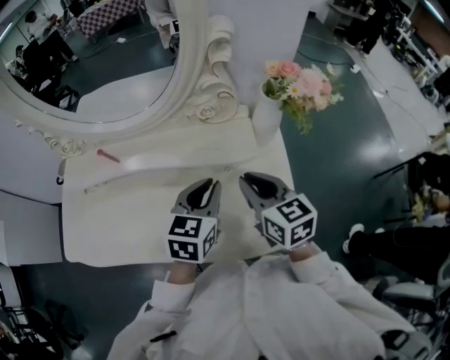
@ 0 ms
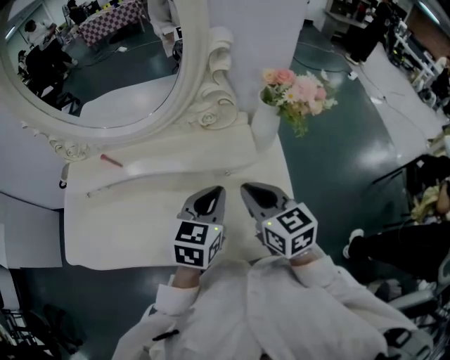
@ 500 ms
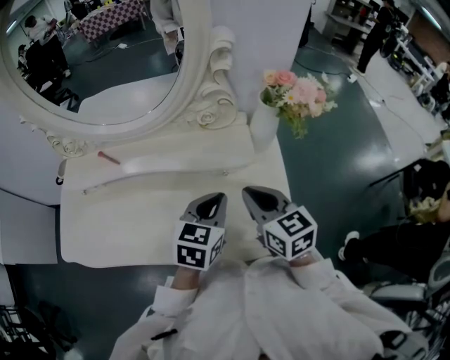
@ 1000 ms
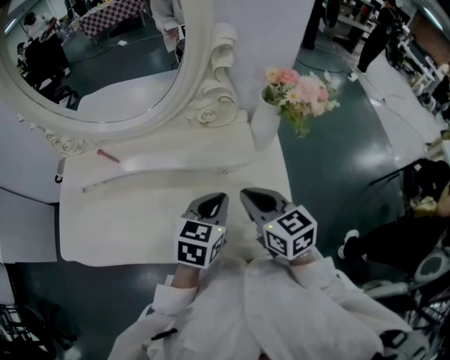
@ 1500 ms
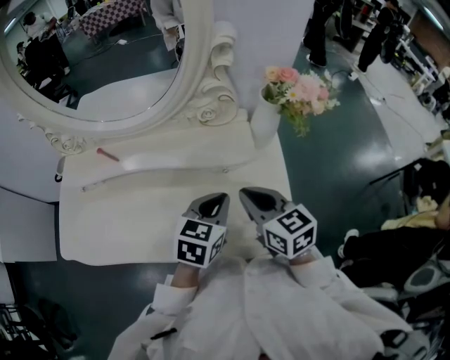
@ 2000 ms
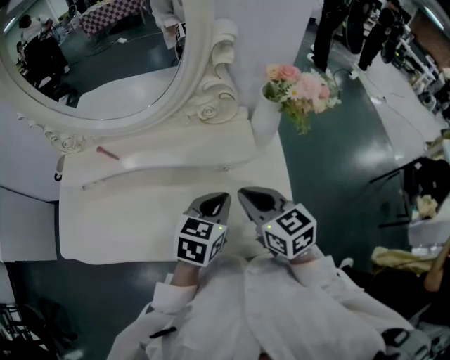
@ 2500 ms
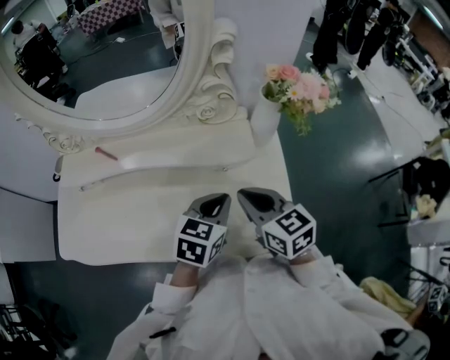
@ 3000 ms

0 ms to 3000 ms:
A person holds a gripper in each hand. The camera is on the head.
0 ms to 1500 ms: There are only small adjustments of the grippers.
1500 ms to 3000 ms: The two grippers keep their place.

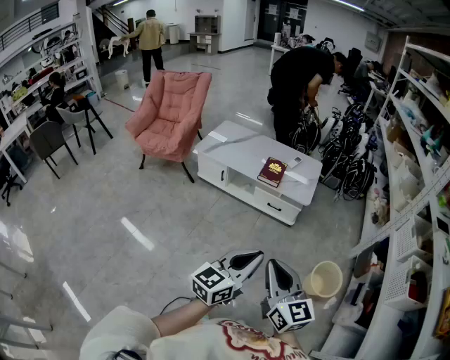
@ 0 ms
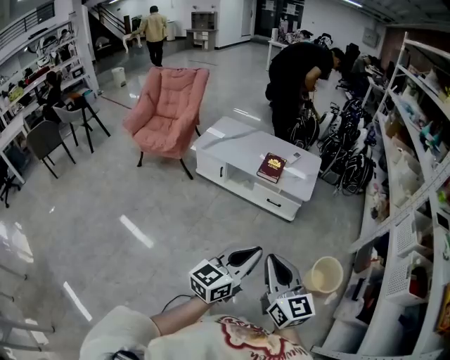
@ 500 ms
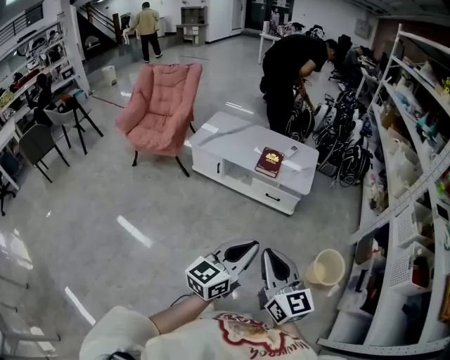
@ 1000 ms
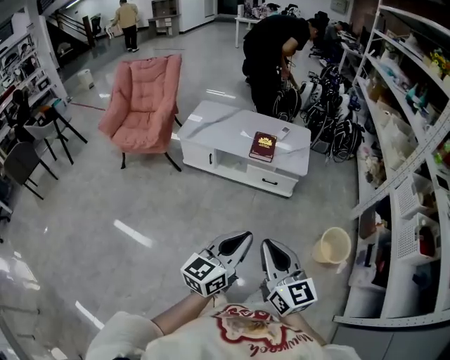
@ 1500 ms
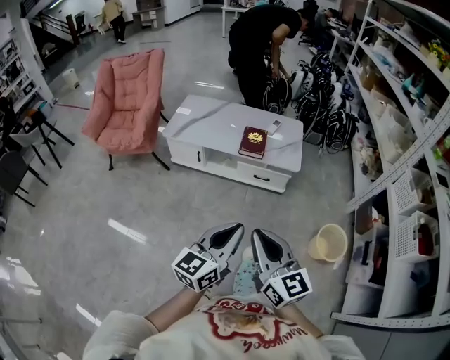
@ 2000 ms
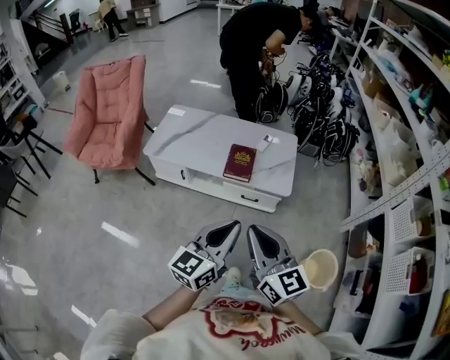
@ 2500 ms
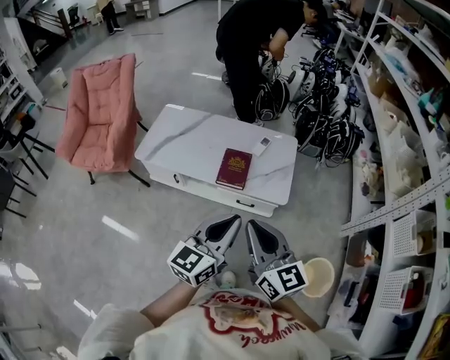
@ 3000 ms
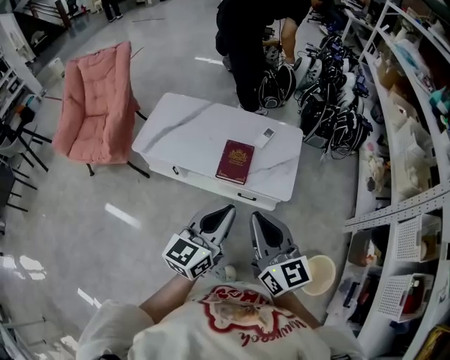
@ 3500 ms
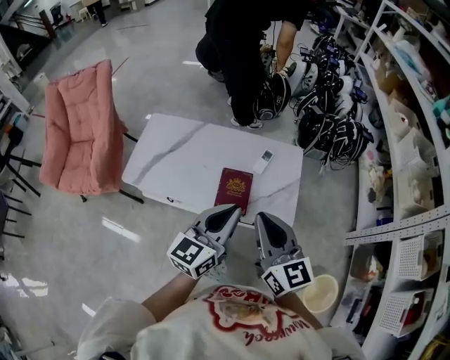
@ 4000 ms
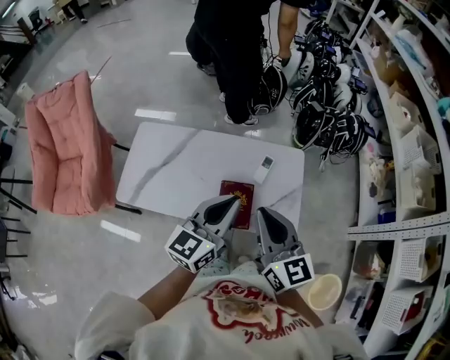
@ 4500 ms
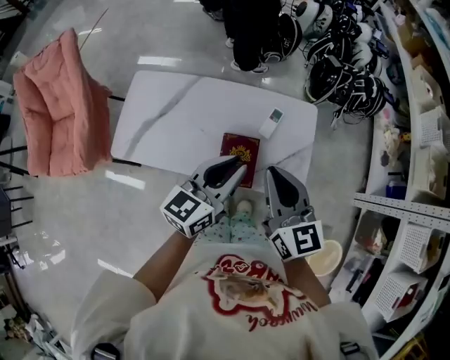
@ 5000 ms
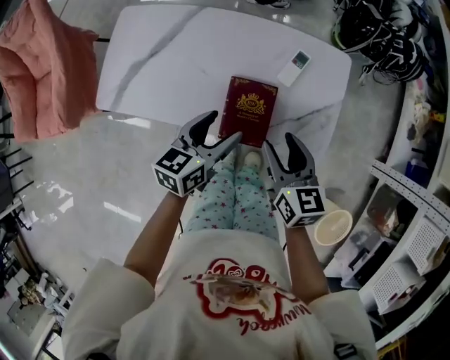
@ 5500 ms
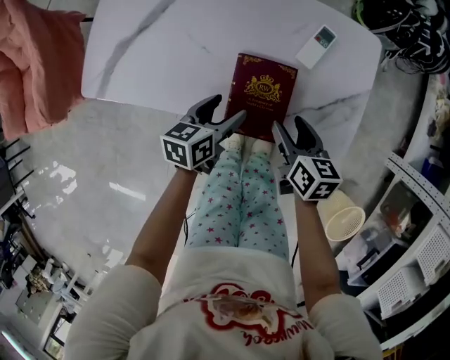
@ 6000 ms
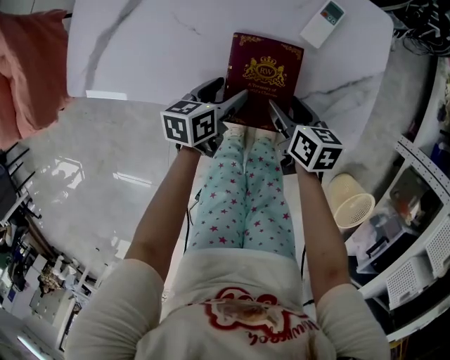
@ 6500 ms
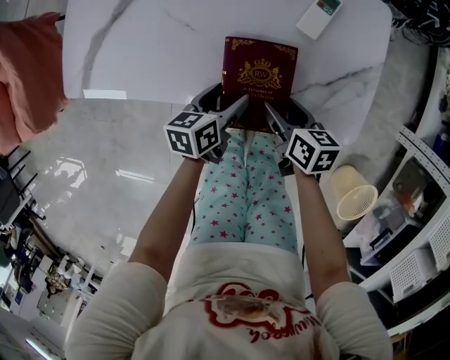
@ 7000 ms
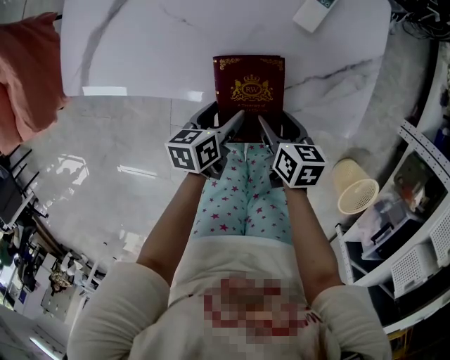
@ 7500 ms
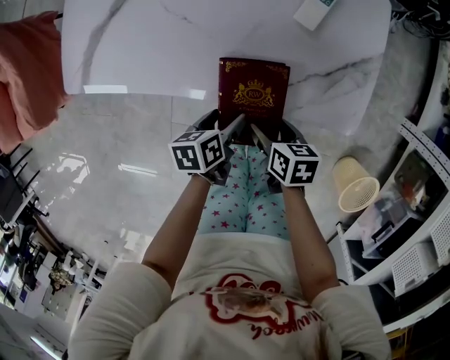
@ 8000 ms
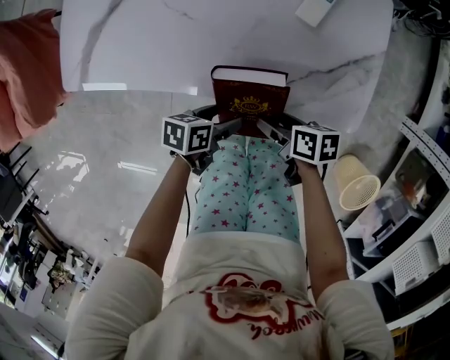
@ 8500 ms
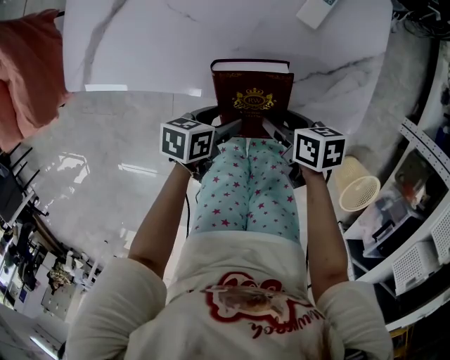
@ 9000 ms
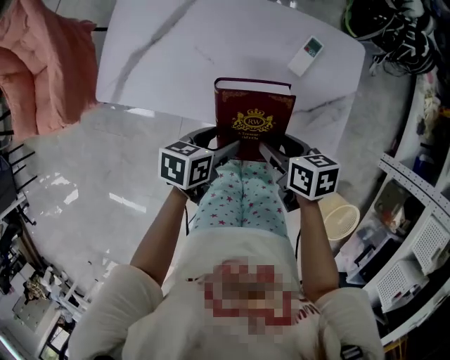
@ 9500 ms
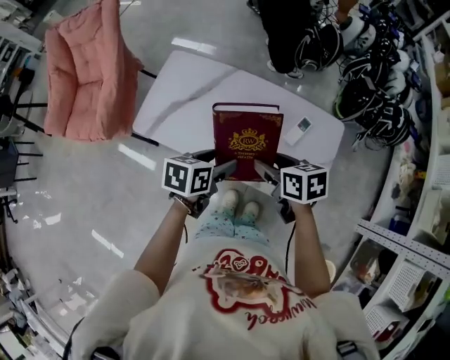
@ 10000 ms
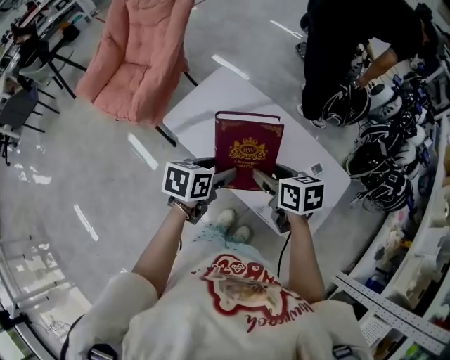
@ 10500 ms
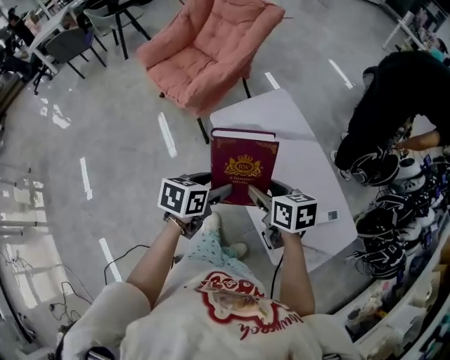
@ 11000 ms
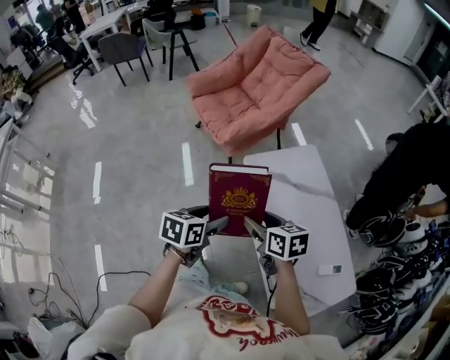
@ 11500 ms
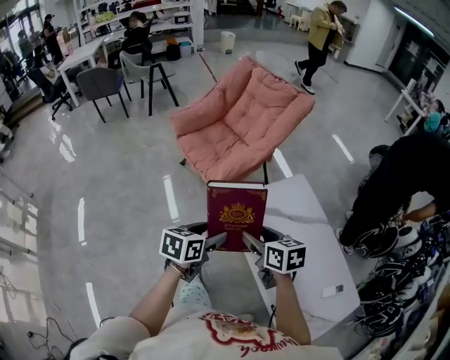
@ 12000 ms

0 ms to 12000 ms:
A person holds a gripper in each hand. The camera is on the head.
0 ms to 2000 ms: Both grippers move to the left and forward, some 15 cm.
2000 ms to 4000 ms: The two grippers travel together, forward, about 50 cm.
4000 ms to 6000 ms: Both grippers move downward, some 40 cm. The right gripper angles its fingers downward, by approximately 40 degrees, and opens up; the left gripper tips its fingers downward by some 30 degrees, and opens its fingers.
6000 ms to 8000 ms: Both grippers move backward and downward, about 15 cm. The right gripper swivels roughly 20 degrees. The left gripper swivels approximately 30 degrees.
8000 ms to 10000 ms: The grippers both shift upward by roughly 30 cm. The right gripper changes its angle by about 30 degrees, while the left gripper rotates approximately 20 degrees.
10000 ms to 12000 ms: Both grippers are carried approximately 40 cm. The right gripper rotates approximately 40 degrees, while the left gripper changes its angle by about 50 degrees.

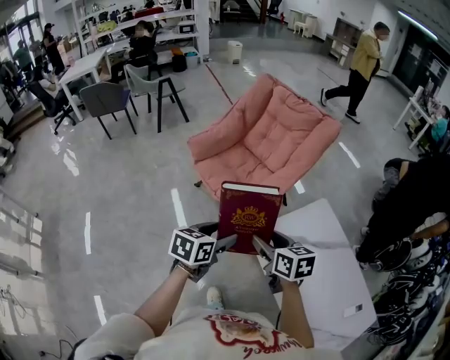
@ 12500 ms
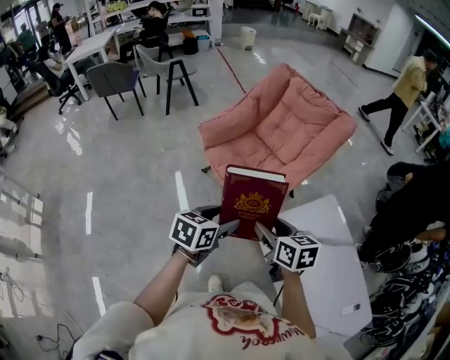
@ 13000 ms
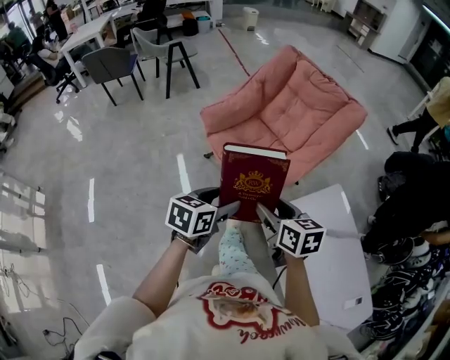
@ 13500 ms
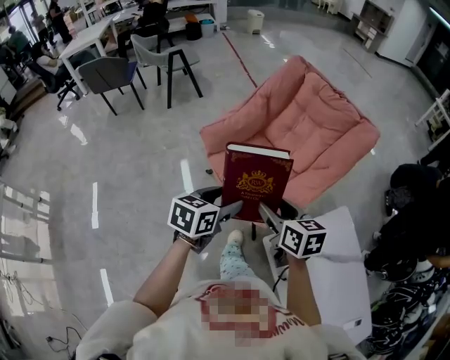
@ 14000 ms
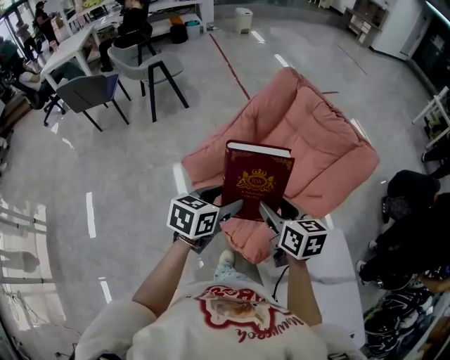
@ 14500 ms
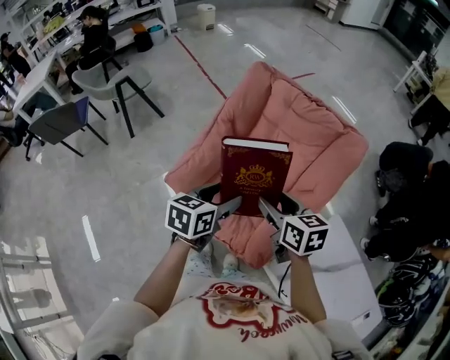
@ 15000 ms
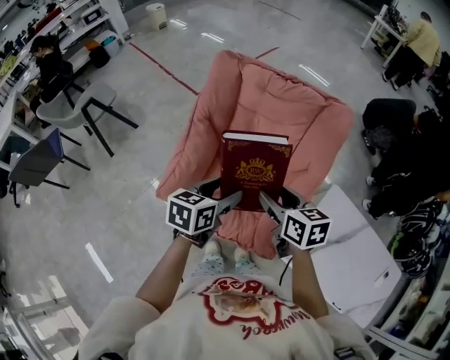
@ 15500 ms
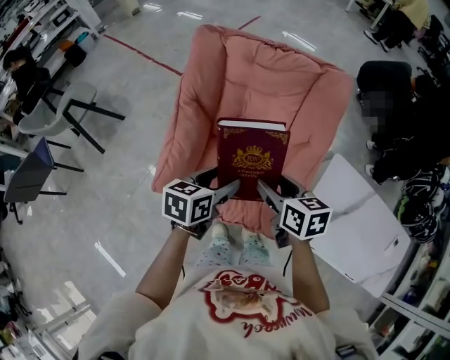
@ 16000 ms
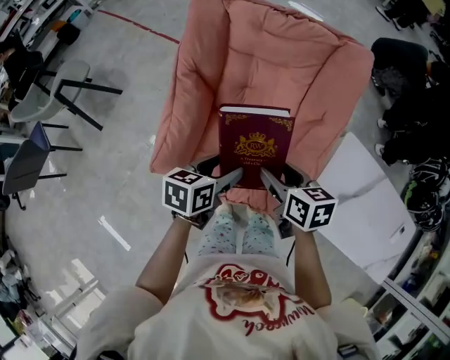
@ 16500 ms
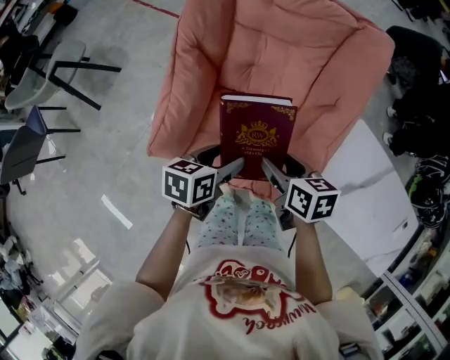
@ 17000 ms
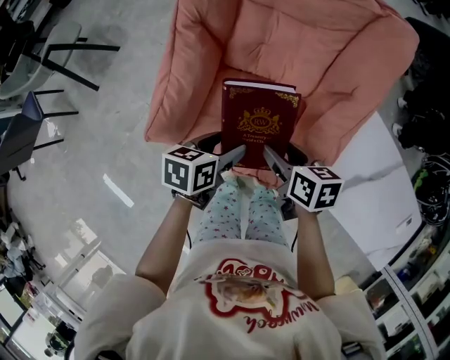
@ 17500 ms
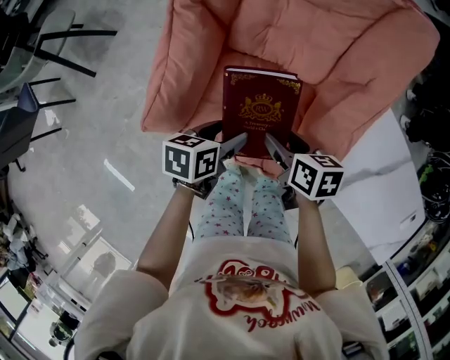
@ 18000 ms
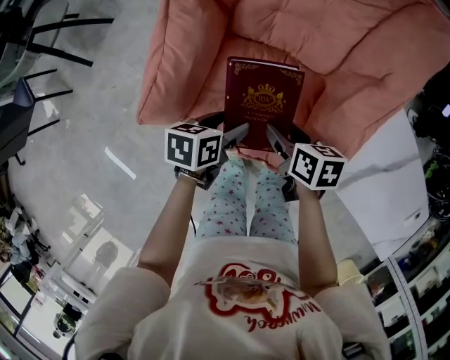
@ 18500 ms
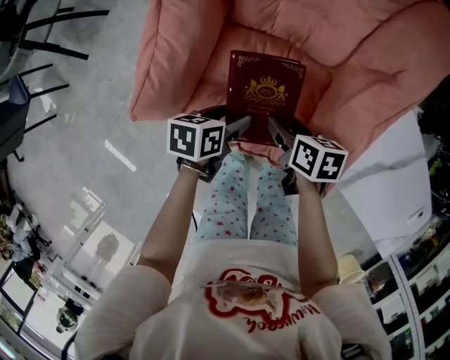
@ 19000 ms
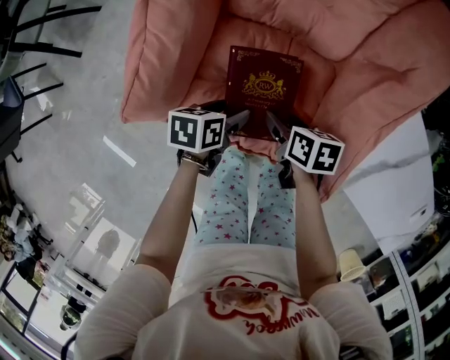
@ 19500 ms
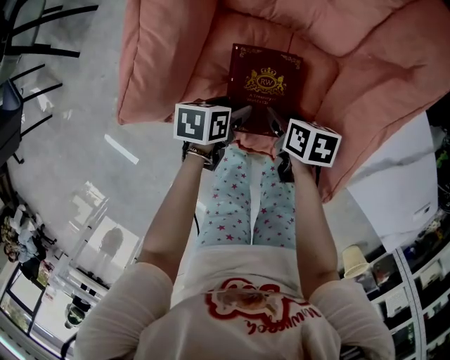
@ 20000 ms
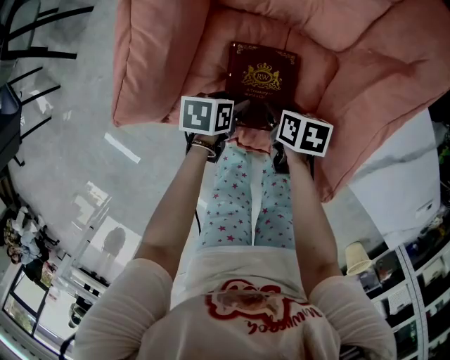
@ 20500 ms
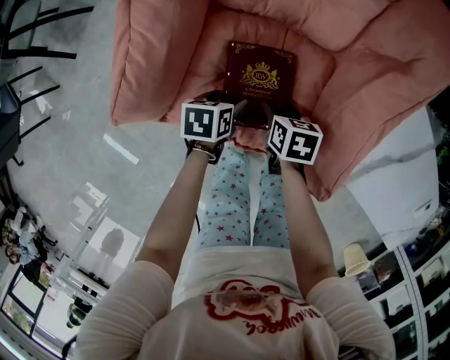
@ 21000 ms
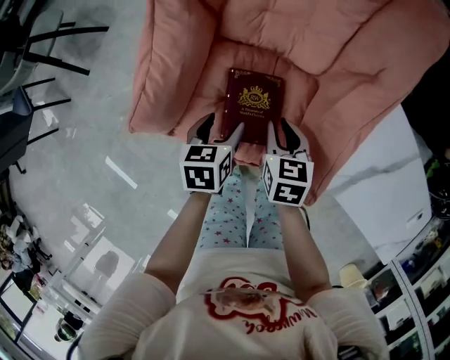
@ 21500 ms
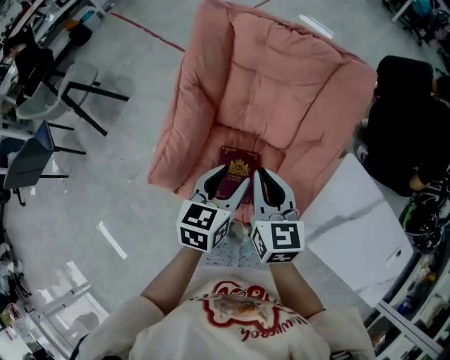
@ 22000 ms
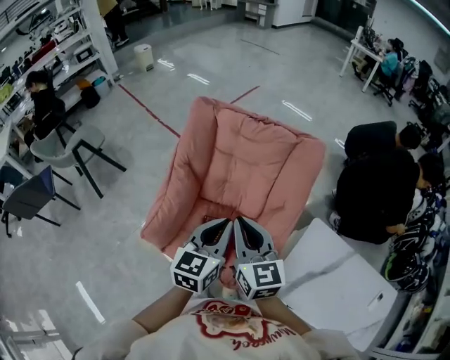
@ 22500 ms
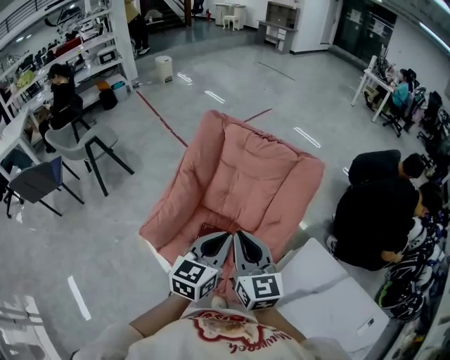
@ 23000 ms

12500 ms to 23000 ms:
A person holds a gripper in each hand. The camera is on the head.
12500 ms to 14500 ms: Both grippers move forward, roughly 40 cm.
14500 ms to 16500 ms: The left gripper changes place by roughly 15 cm, and changes its angle by roughly 30 degrees; the right gripper travels downward by about 10 cm, and changes its angle by about 30 degrees.
16500 ms to 19000 ms: The grippers both shift downward by some 25 cm. The right gripper rotates roughly 20 degrees.
19000 ms to 21000 ms: The two grippers go roughly 10 cm downward.
21000 ms to 23000 ms: The two grippers go some 50 cm upward. The left gripper points its fingers approximately 50 degrees further upward, and closes its fingers. The right gripper tilts its fingers about 60 degrees upward, and closes up.

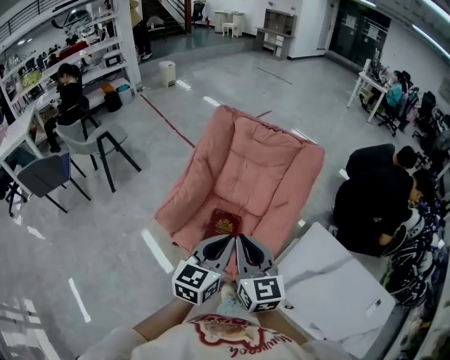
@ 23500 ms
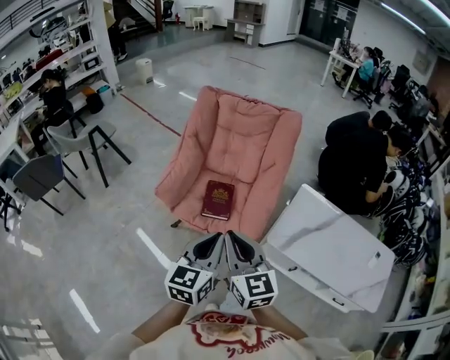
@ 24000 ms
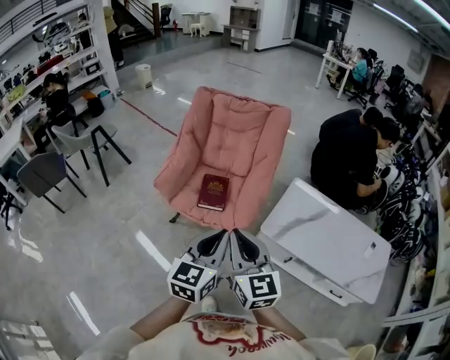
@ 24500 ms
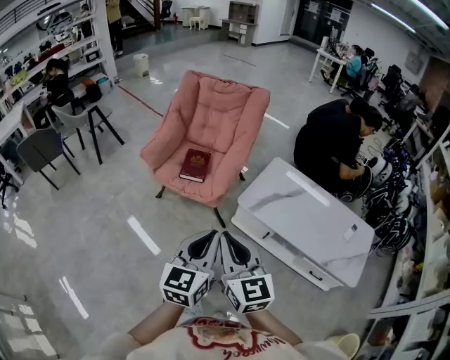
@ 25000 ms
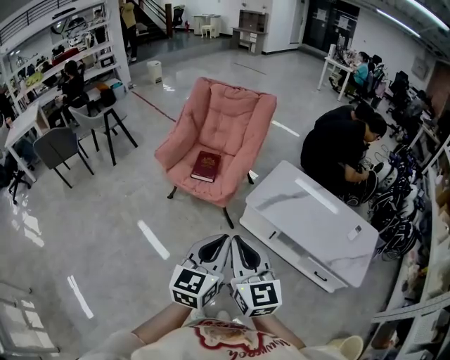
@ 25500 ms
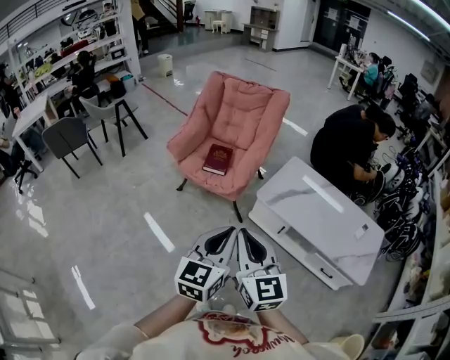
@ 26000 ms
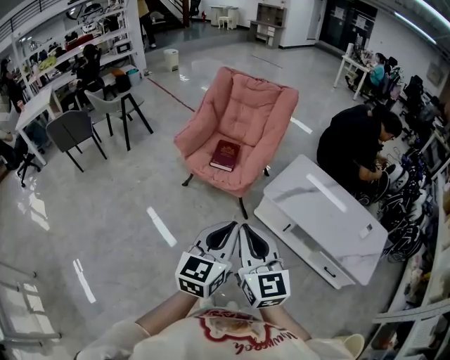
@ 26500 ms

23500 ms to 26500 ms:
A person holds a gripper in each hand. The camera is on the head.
23500 ms to 25000 ms: The pair of grippers is taken backward, roughly 40 cm.
25000 ms to 26500 ms: Both grippers move backward, approximately 10 cm.
